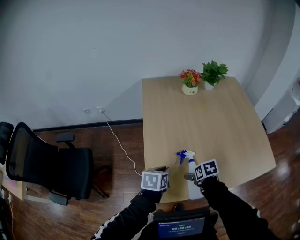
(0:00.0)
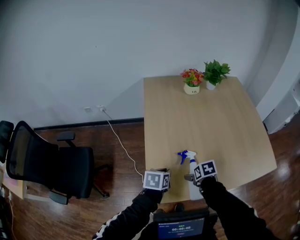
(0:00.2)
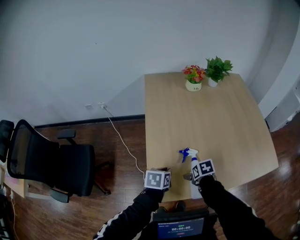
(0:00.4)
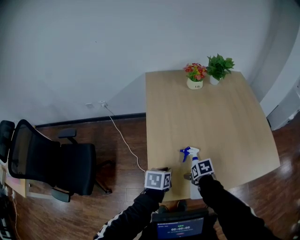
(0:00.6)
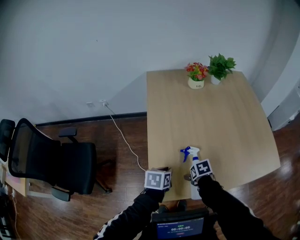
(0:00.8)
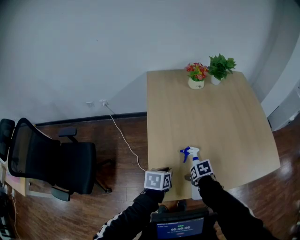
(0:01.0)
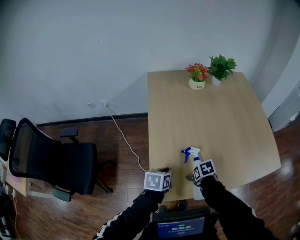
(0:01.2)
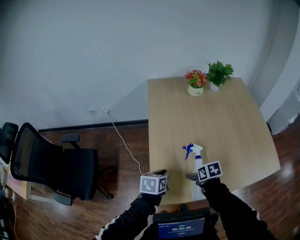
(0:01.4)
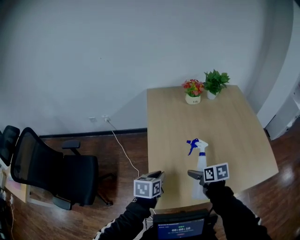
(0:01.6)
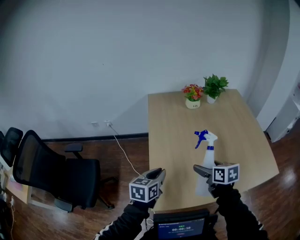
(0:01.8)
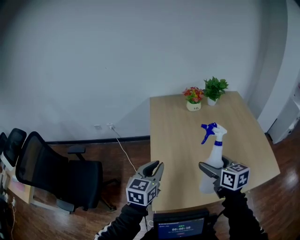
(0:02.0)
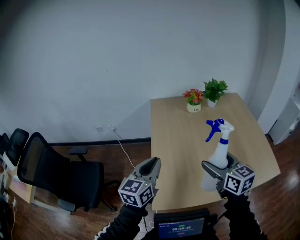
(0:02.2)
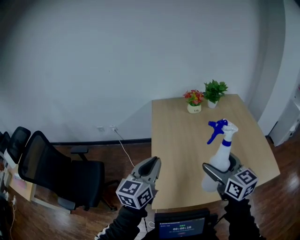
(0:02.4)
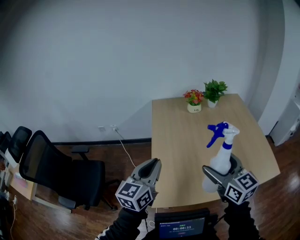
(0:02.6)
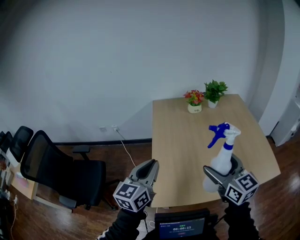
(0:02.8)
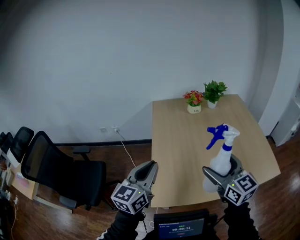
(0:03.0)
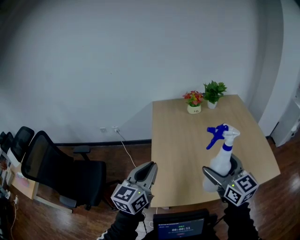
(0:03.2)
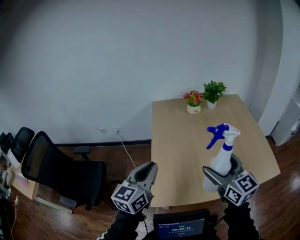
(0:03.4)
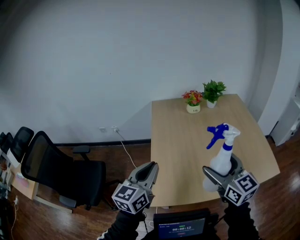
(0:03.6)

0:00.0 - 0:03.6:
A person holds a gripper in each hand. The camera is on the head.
0:00.0 - 0:01.8: The left gripper goes approximately 10 cm upward; the right gripper is displaced upward by roughly 20 cm, and angles its fingers upward, by about 30 degrees.
0:01.8 - 0:03.6: The two grippers go some 20 cm upward and backward. The left gripper changes its angle by approximately 30 degrees. Meanwhile the right gripper angles its fingers upward, by roughly 30 degrees.

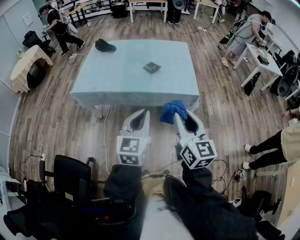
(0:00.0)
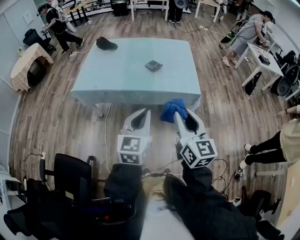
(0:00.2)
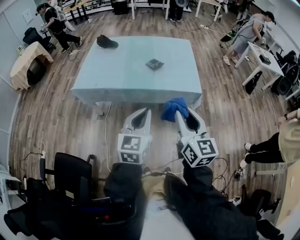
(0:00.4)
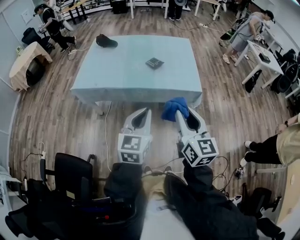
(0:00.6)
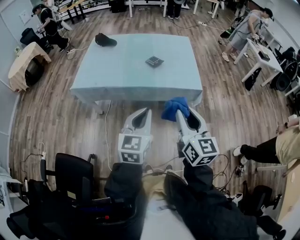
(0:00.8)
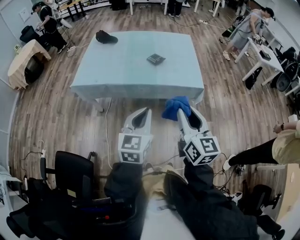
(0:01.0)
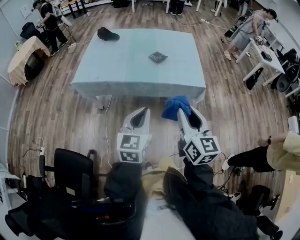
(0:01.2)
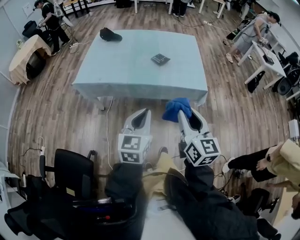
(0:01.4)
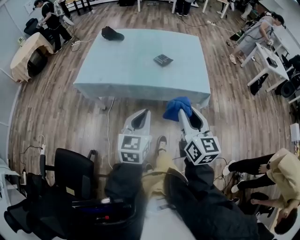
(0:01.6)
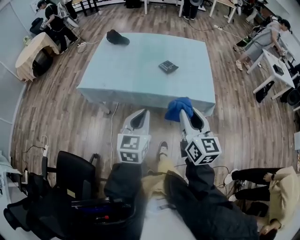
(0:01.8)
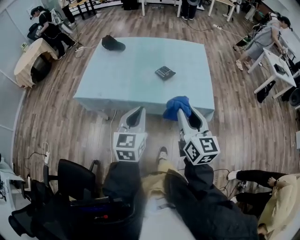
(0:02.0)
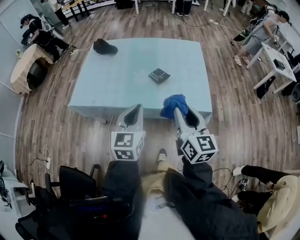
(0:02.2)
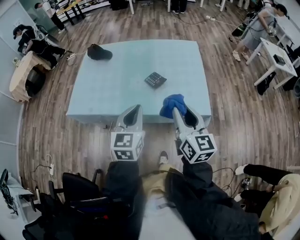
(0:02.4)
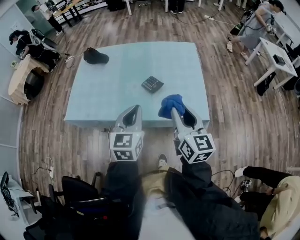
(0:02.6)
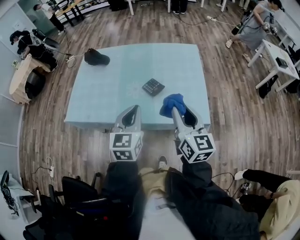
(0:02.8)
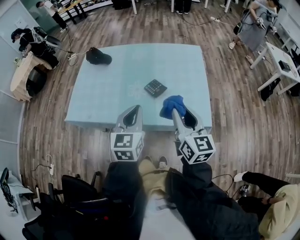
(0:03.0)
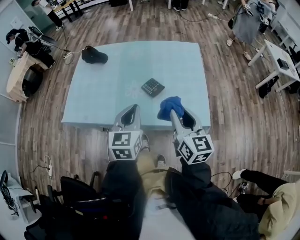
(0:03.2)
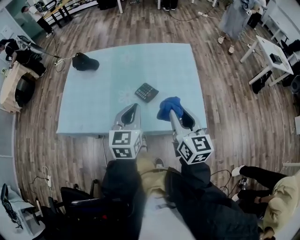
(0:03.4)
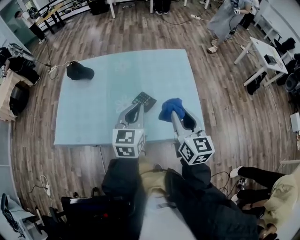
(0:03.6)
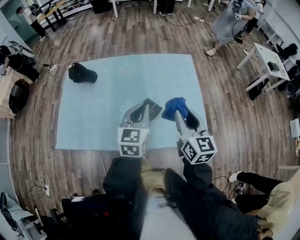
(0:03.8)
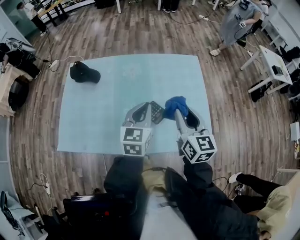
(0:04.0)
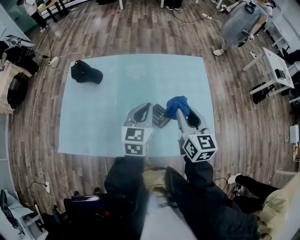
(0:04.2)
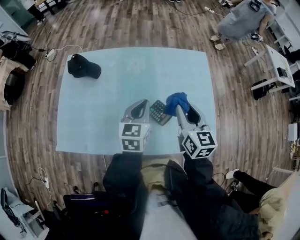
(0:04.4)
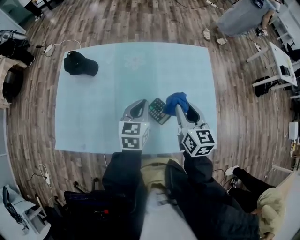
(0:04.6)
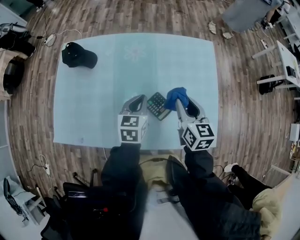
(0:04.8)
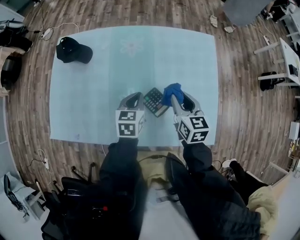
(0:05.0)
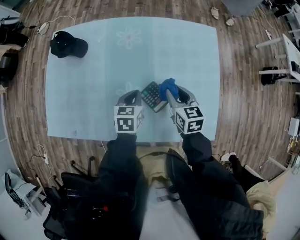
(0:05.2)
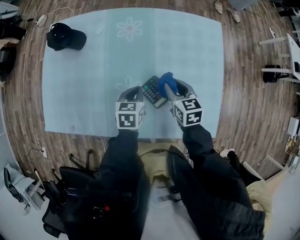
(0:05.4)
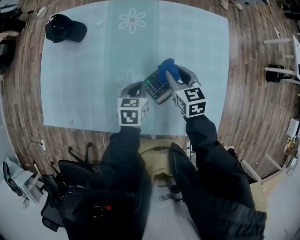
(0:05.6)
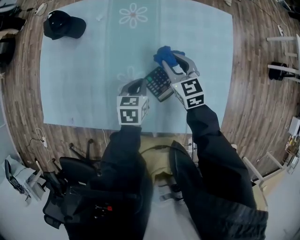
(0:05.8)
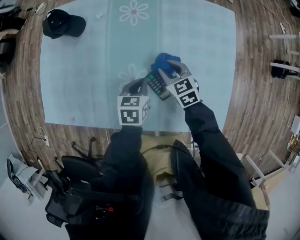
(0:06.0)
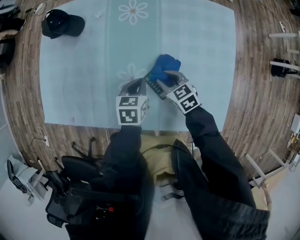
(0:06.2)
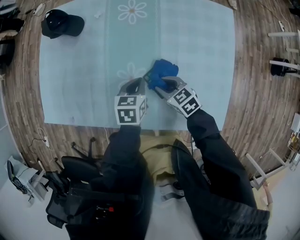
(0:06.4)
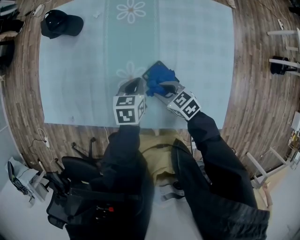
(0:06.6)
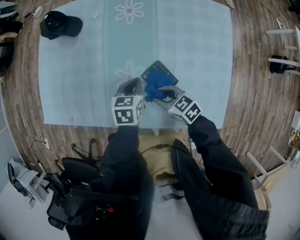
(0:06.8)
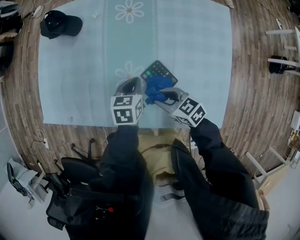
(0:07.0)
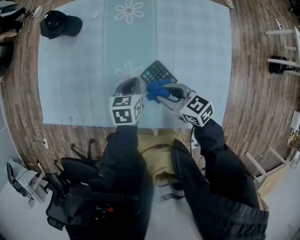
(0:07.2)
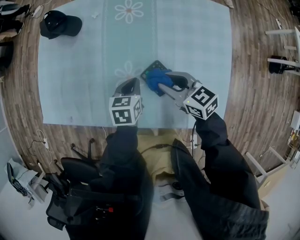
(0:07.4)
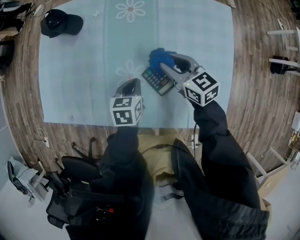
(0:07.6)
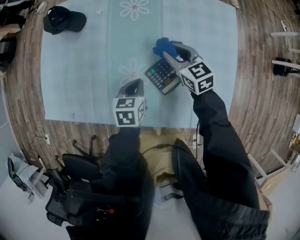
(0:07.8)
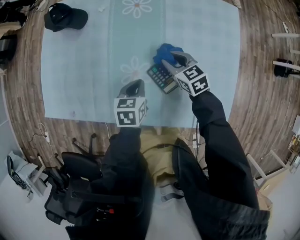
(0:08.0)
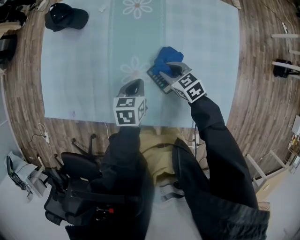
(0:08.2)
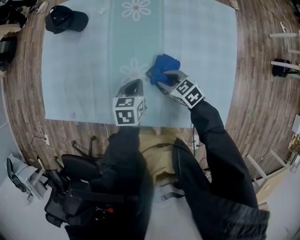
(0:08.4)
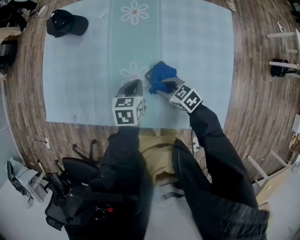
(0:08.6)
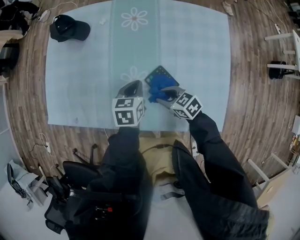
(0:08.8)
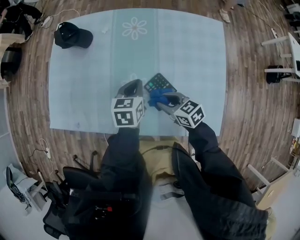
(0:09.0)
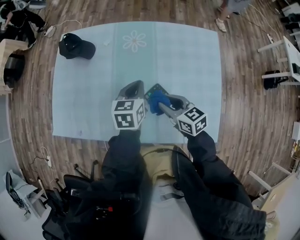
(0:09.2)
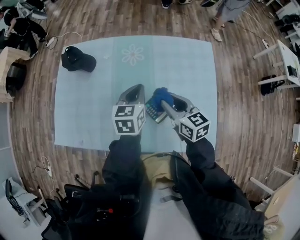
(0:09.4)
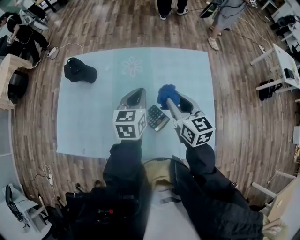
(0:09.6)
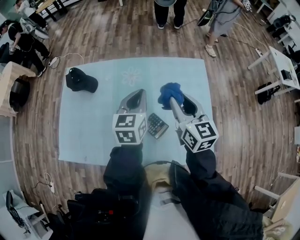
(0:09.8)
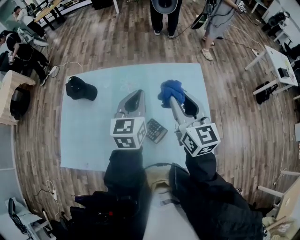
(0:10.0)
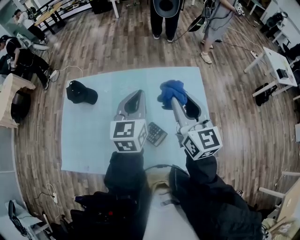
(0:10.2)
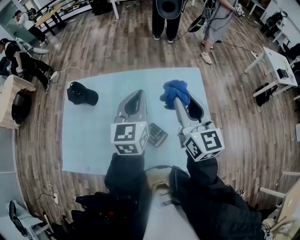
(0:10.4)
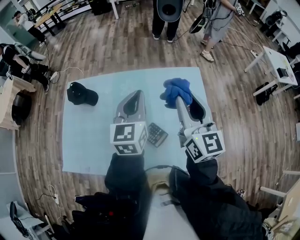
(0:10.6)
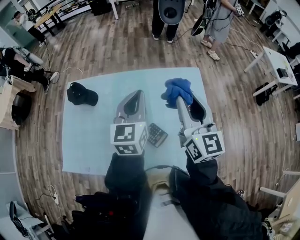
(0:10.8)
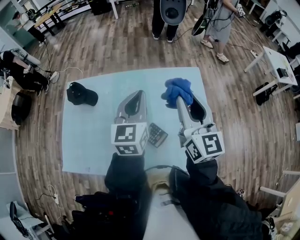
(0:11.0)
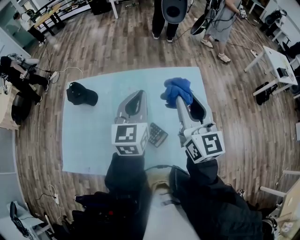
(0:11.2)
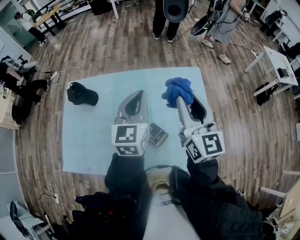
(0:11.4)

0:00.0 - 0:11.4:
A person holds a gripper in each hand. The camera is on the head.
0:00.0 - 0:01.4: The left gripper shifts about 5 cm to the left. The right gripper moves about 5 cm.
0:01.4 - 0:02.8: The two grippers go roughly 30 cm forward.
0:02.8 - 0:04.2: Both grippers travel together forward, about 25 cm.
0:04.2 - 0:05.6: The right gripper travels downward and forward by approximately 25 cm, and rotates about 30 degrees. The left gripper is displaced downward by approximately 25 cm, and swivels roughly 30 degrees.
0:05.6 - 0:07.2: The right gripper heads backward and to the left, covering some 15 cm, and changes its angle by roughly 30 degrees.
0:07.2 - 0:08.6: The right gripper travels downward by some 10 cm, and travels forward and back again, about 15 cm each way.
0:08.6 - 0:10.0: Both grippers travel together upward, roughly 35 cm. The right gripper angles its fingers upward, by about 40 degrees; the left gripper points its fingers approximately 30 degrees further upward.
0:10.0 - 0:11.4: The right gripper shifts some 5 cm upward.

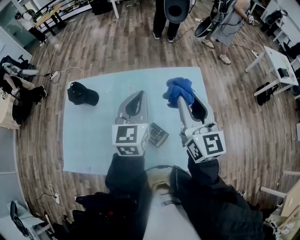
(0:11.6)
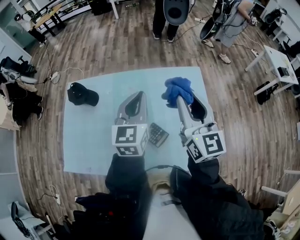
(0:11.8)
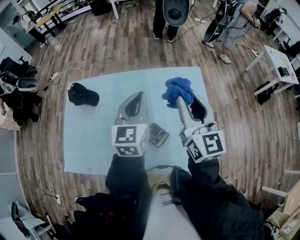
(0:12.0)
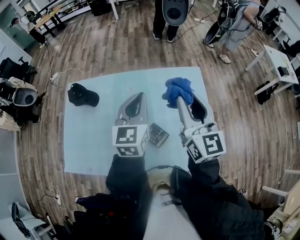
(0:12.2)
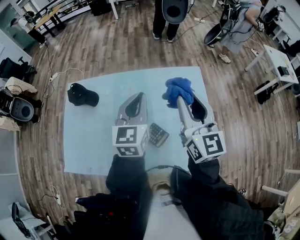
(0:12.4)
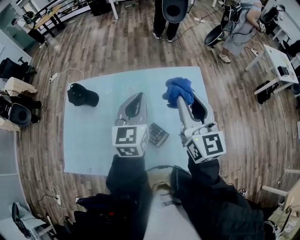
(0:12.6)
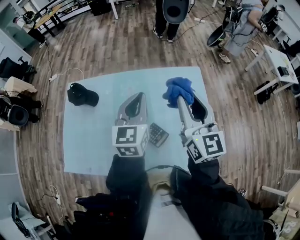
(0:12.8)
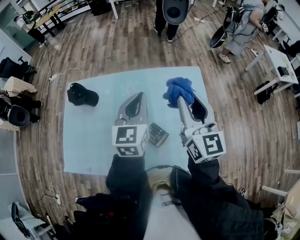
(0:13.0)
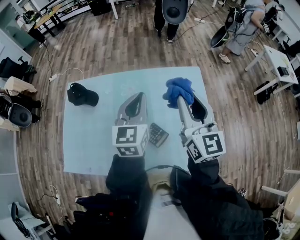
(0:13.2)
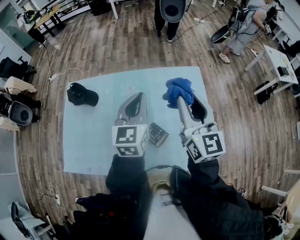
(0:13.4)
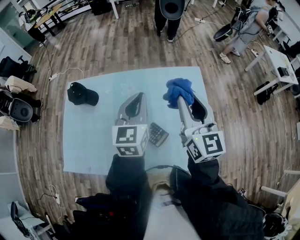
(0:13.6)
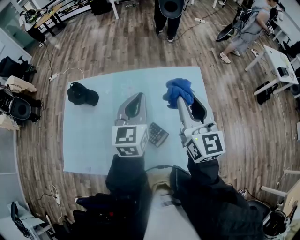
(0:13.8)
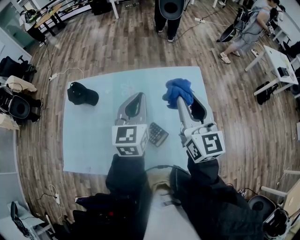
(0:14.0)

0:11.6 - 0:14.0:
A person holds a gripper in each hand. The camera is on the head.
0:11.6 - 0:14.0: Both grippers stay about where they are.

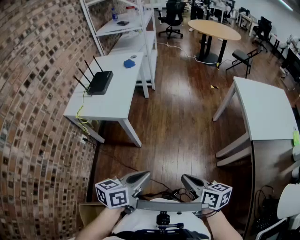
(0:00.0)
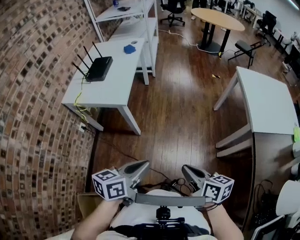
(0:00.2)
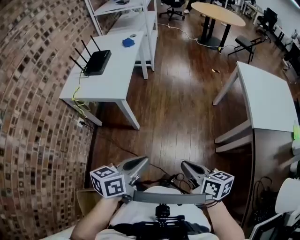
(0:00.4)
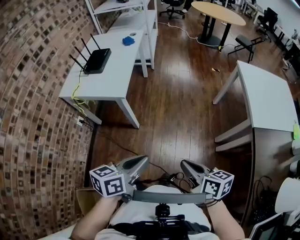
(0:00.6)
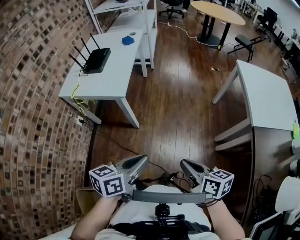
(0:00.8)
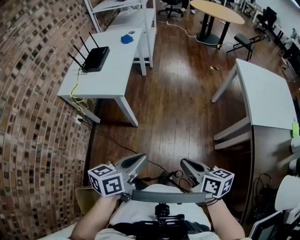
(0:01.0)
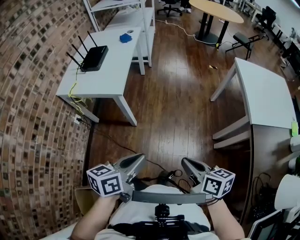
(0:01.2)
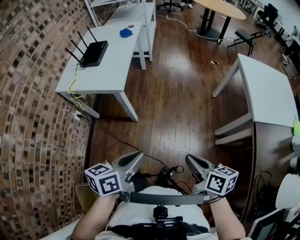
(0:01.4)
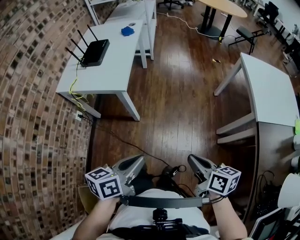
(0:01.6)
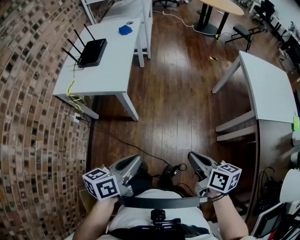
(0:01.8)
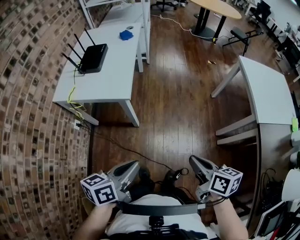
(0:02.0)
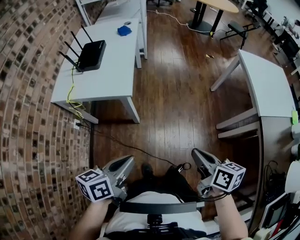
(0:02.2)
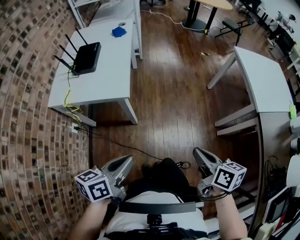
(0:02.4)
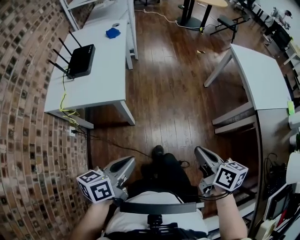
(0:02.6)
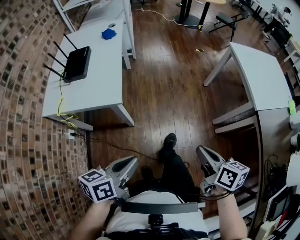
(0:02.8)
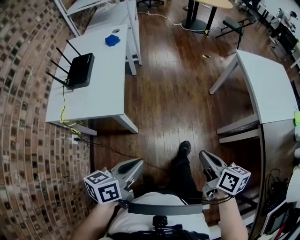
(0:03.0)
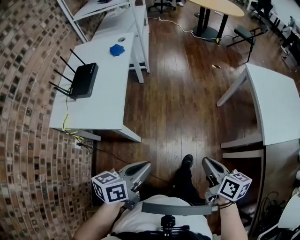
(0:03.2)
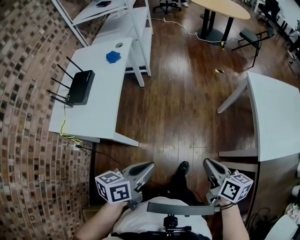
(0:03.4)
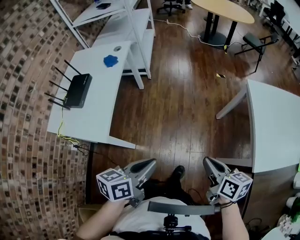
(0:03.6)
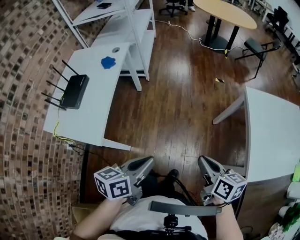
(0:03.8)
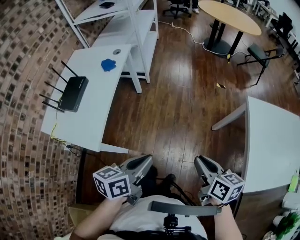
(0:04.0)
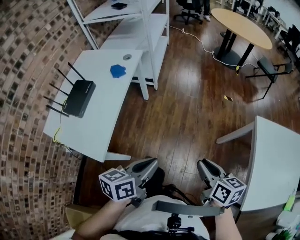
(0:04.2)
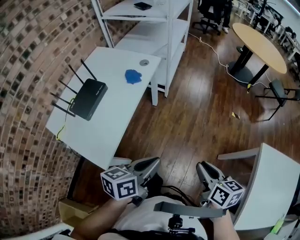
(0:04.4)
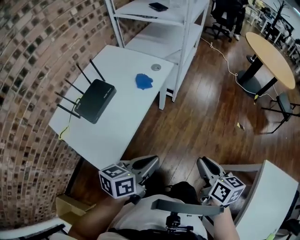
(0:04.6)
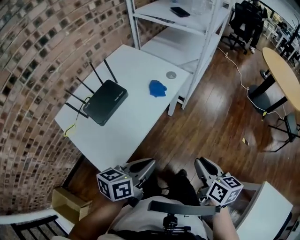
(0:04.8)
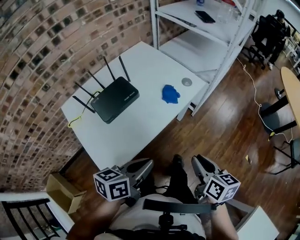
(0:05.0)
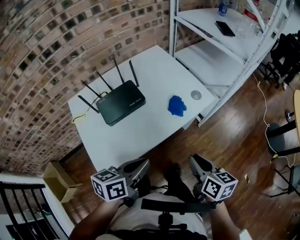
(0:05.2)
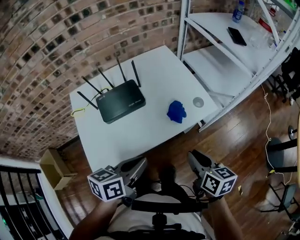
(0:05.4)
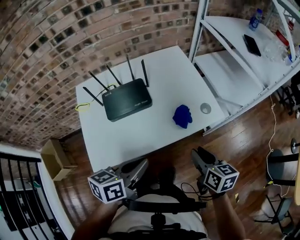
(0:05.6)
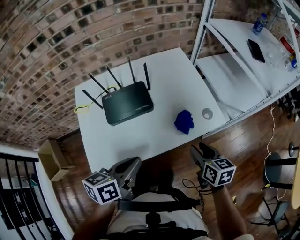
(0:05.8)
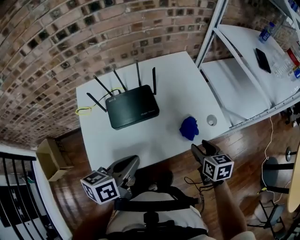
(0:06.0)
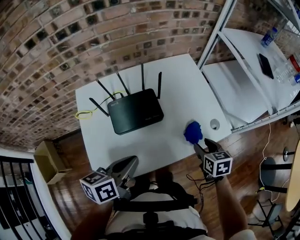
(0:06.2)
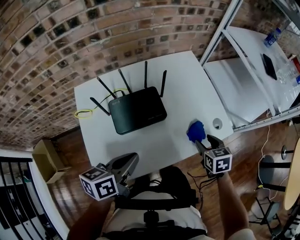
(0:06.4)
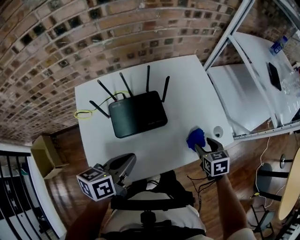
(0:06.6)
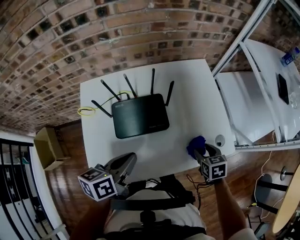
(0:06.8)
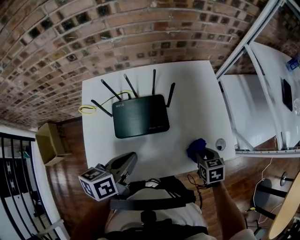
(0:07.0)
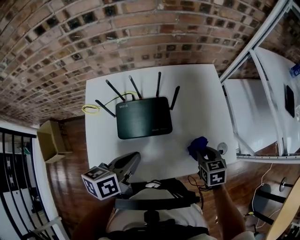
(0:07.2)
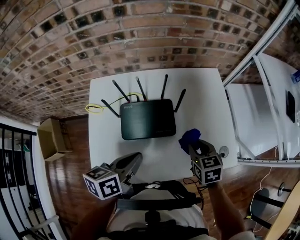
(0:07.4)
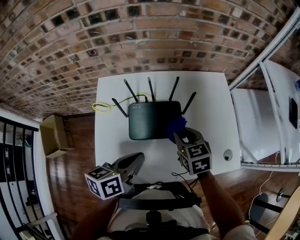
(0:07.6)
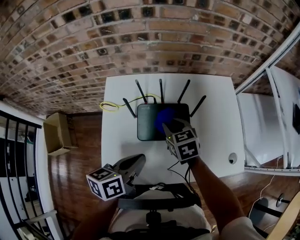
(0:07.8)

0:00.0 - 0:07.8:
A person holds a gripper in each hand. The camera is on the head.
0:00.0 - 0:01.6: The left gripper is displaced to the left by roughly 10 cm, while the right gripper goes about 5 cm forward.
0:01.6 - 0:03.2: The grippers both shift forward by approximately 25 cm.
0:03.2 - 0:04.6: The pair of grippers is taken forward, roughly 50 cm. The left gripper rotates about 20 degrees. The right gripper swivels approximately 30 degrees.
0:04.6 - 0:06.2: The left gripper shifts by about 35 cm, and turns by about 50 degrees. The right gripper moves roughly 50 cm, turns by about 60 degrees, and opens up.
0:06.2 - 0:07.8: The left gripper changes place by approximately 10 cm, while the right gripper goes downward and returns, approximately 5 cm each way, changes its angle by some 30 degrees, and closes up.
